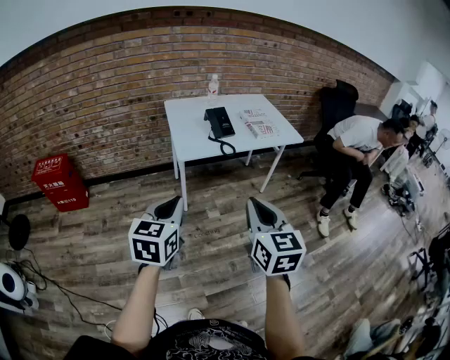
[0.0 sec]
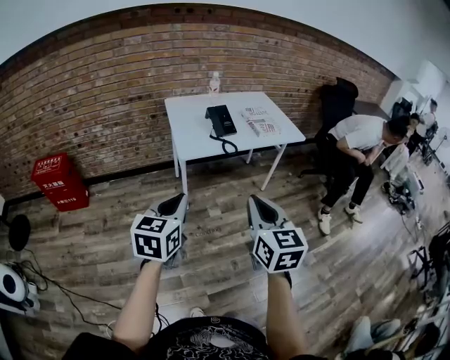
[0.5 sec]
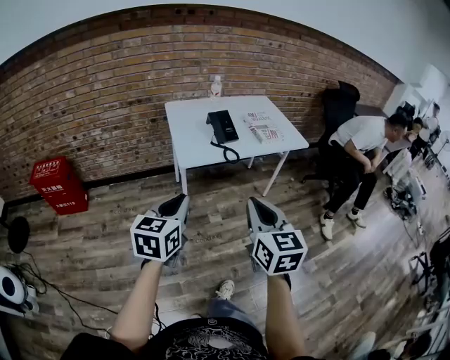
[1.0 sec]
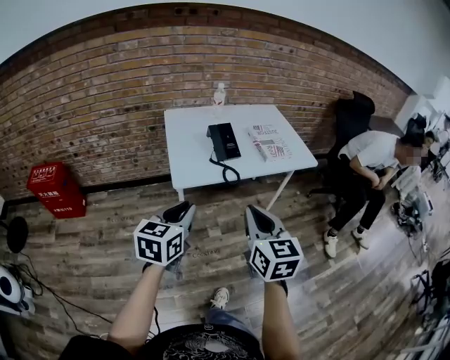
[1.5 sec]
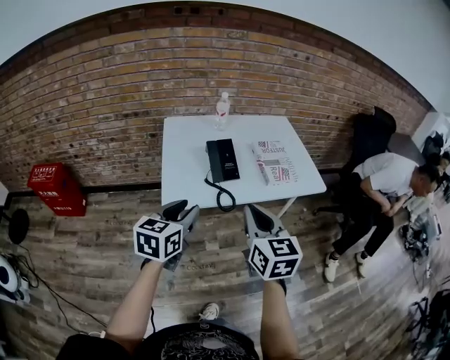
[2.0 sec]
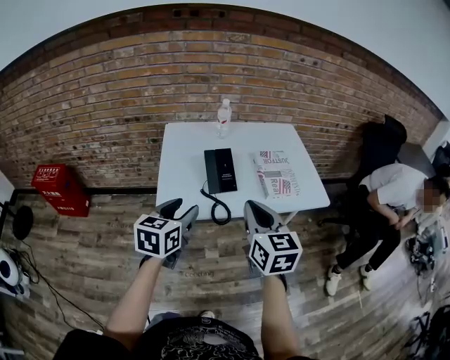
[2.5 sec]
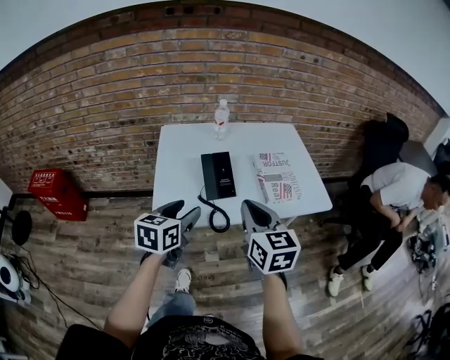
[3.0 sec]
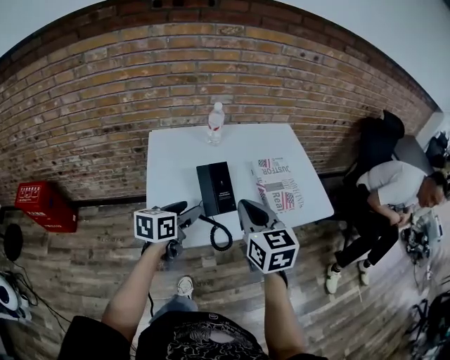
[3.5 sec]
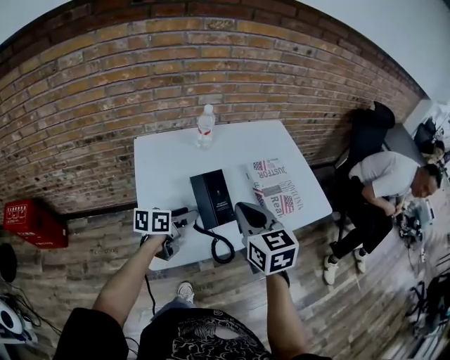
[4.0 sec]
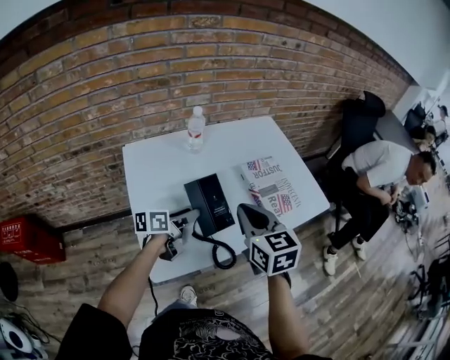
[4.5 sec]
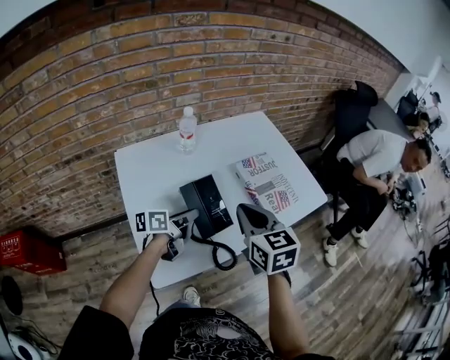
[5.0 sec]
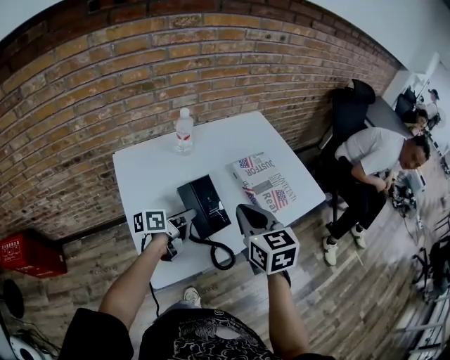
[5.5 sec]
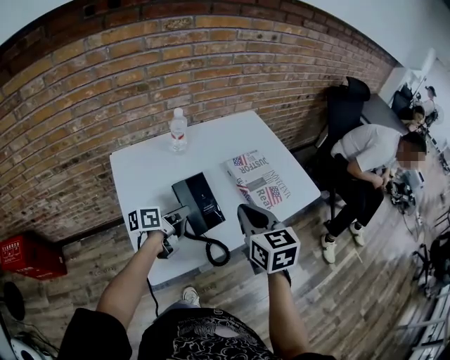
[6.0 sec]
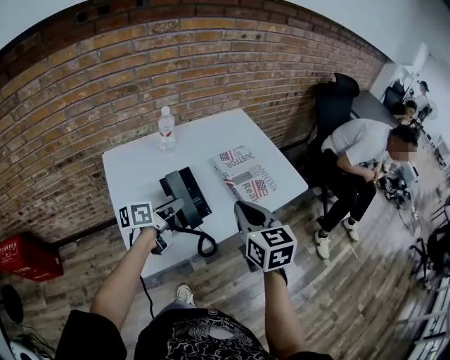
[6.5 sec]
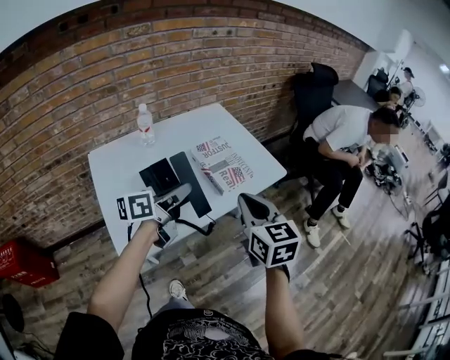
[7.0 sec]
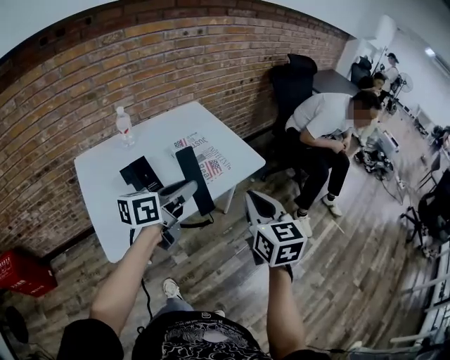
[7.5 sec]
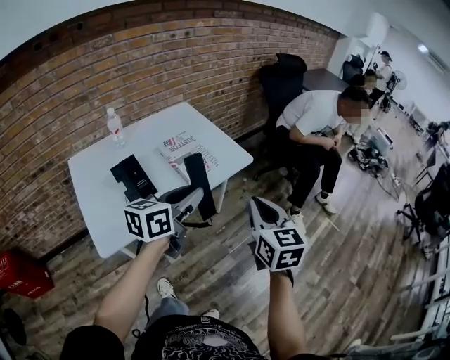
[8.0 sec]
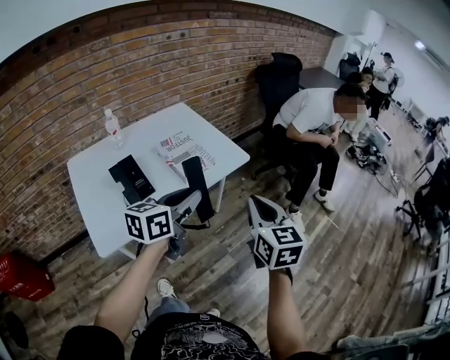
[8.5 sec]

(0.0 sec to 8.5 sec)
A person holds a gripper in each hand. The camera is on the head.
0.0 sec - 2.0 sec: Both grippers move forward, some 30 cm. The left gripper opens its fingers.
2.0 sec - 4.0 sec: The left gripper travels forward and downward by about 30 cm, swivels about 40 degrees, and opens its fingers, while the right gripper goes approximately 25 cm forward.
4.0 sec - 6.5 sec: The left gripper goes approximately 5 cm upward, and closes its fingers. Meanwhile the right gripper shifts roughly 10 cm to the right.
6.5 sec - 8.5 sec: The right gripper moves to the right, approximately 25 cm; the left gripper heads to the right and upward, covering about 30 cm, and rotates some 30 degrees.

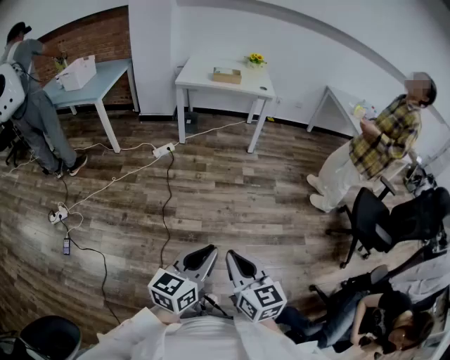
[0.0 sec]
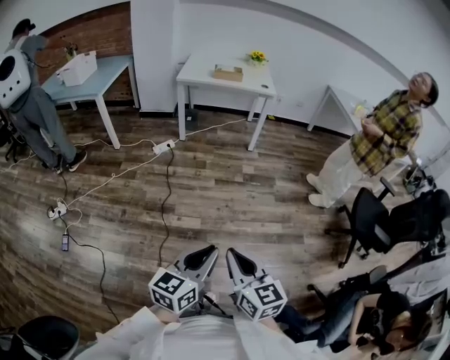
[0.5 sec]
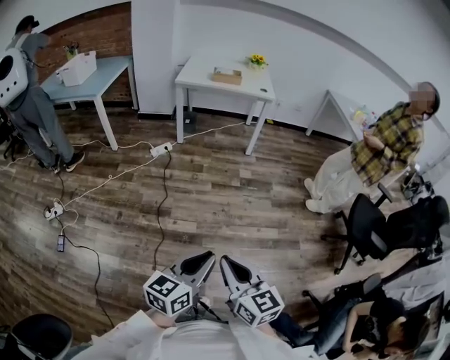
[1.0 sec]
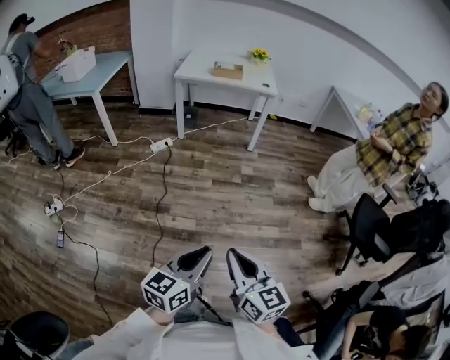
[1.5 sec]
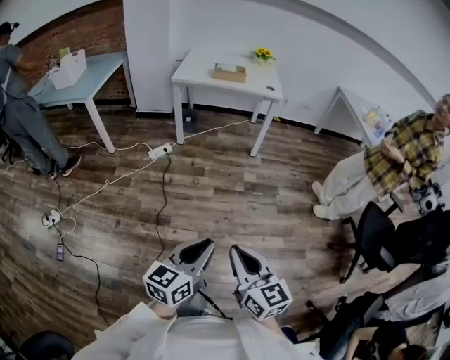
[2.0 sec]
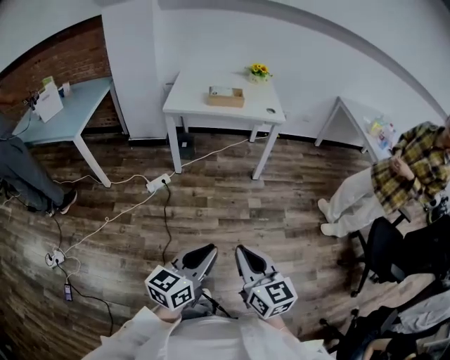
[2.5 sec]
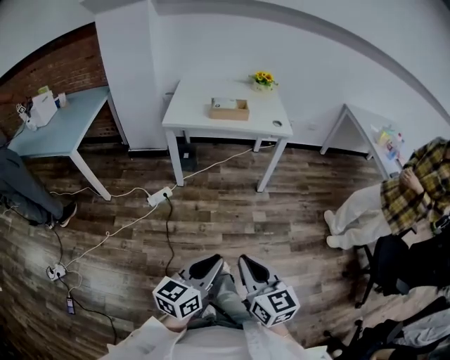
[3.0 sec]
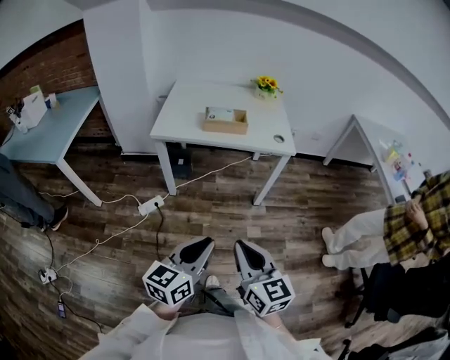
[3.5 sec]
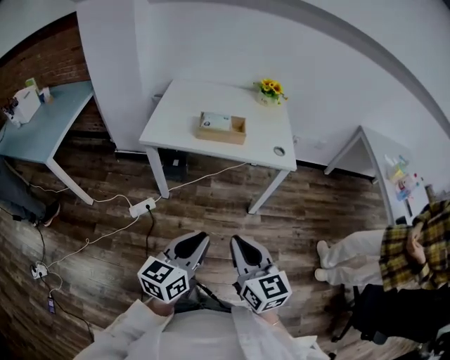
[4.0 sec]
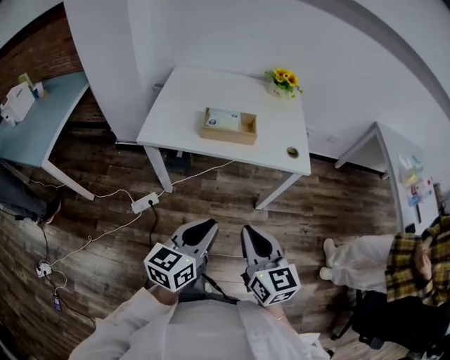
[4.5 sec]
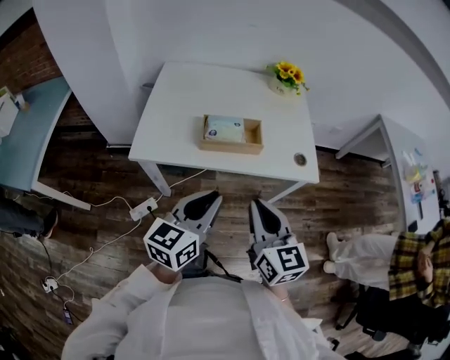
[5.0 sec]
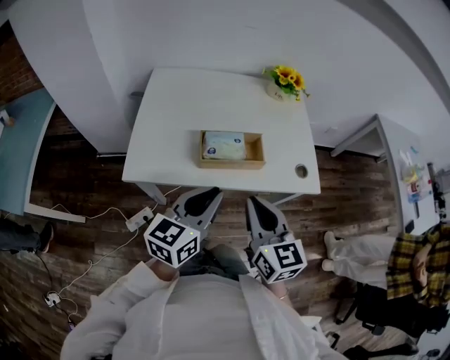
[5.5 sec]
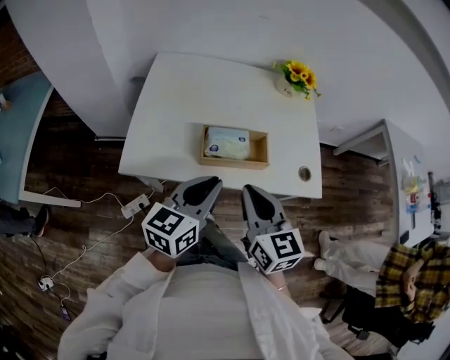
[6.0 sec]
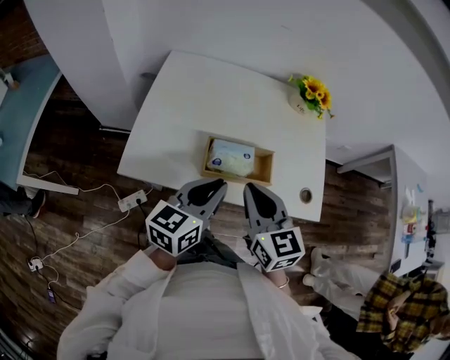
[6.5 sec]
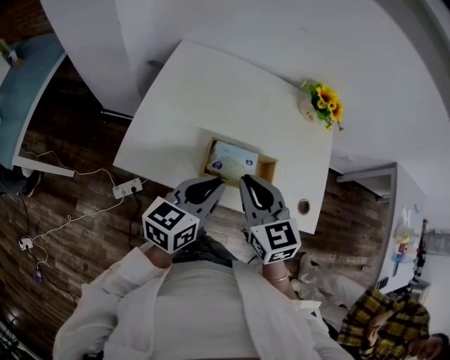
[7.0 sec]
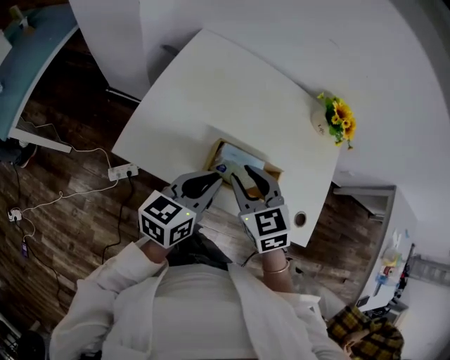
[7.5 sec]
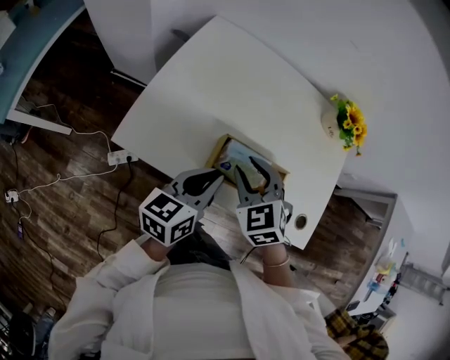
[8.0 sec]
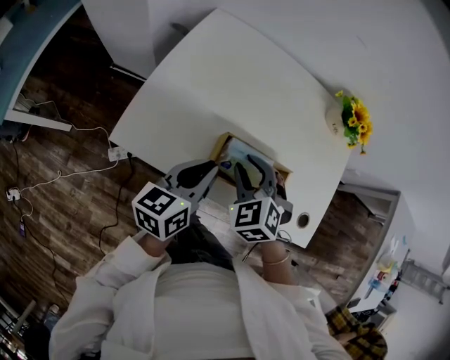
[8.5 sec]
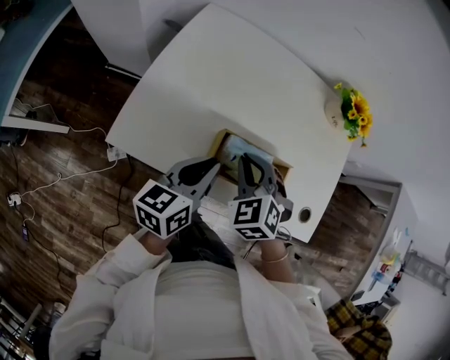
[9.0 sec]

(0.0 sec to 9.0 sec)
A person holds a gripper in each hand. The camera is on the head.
0.0 sec - 2.0 sec: Both grippers travel together forward, about 15 cm.
2.0 sec - 4.5 sec: Both grippers are carried forward, roughly 60 cm.
4.5 sec - 7.0 sec: Both grippers travel together forward, roughly 35 cm. The right gripper turns by roughly 20 degrees.
7.0 sec - 9.0 sec: The left gripper travels downward by about 5 cm, while the right gripper goes some 10 cm downward and forward, turns by approximately 40 degrees, and opens and closes again.

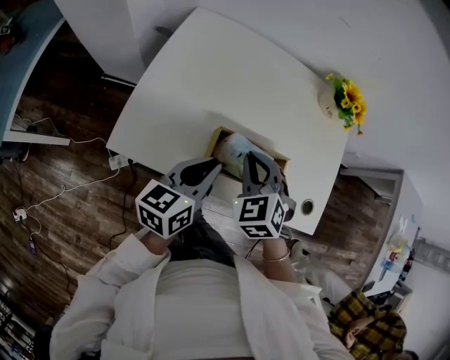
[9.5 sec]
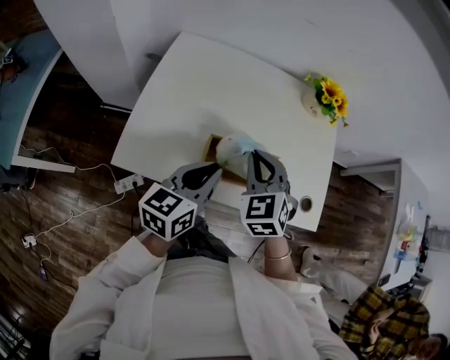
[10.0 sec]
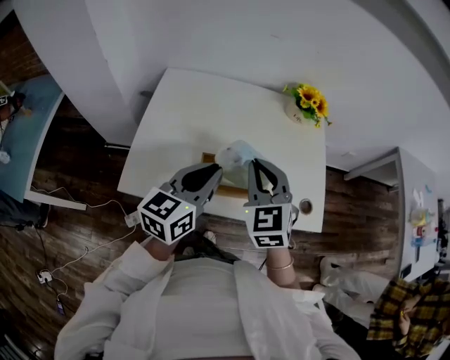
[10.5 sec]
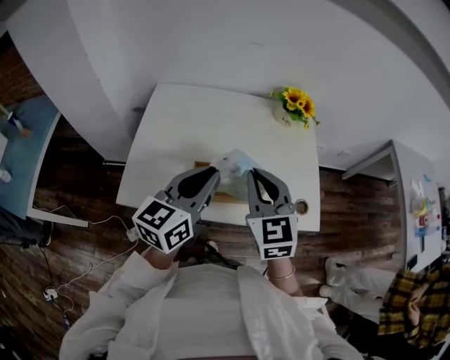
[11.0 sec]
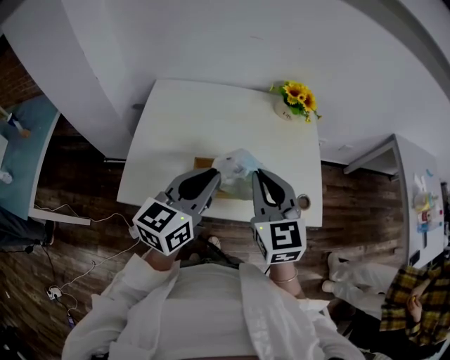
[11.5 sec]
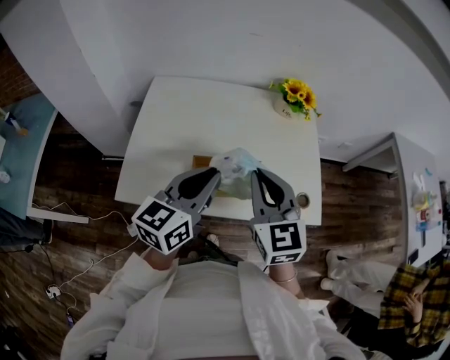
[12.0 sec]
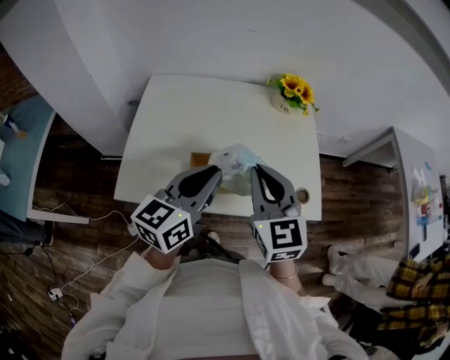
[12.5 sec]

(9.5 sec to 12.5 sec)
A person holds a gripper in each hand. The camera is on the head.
9.5 sec - 11.0 sec: The right gripper goes approximately 15 cm upward and to the right, and rotates roughly 40 degrees, while the left gripper heads upward, covering approximately 15 cm, and swivels about 20 degrees.
11.0 sec - 12.5 sec: The grippers make only small movements.

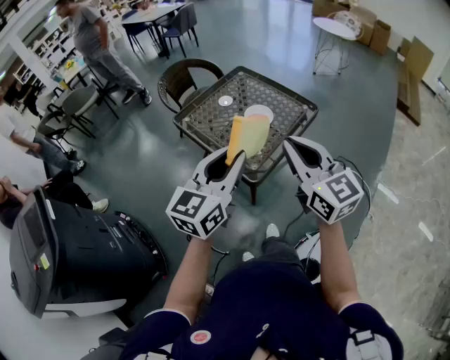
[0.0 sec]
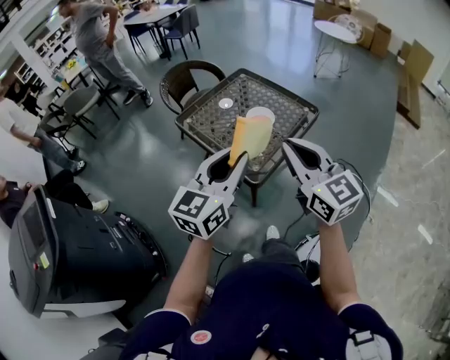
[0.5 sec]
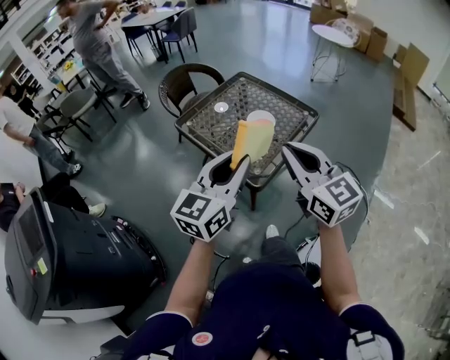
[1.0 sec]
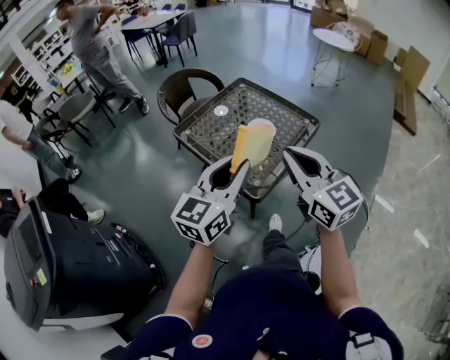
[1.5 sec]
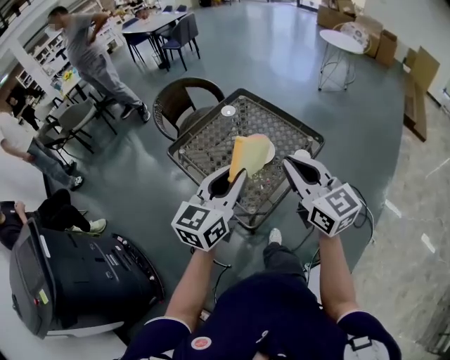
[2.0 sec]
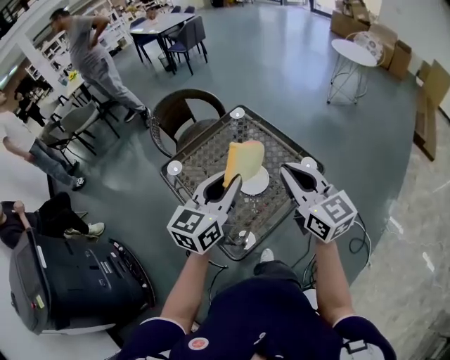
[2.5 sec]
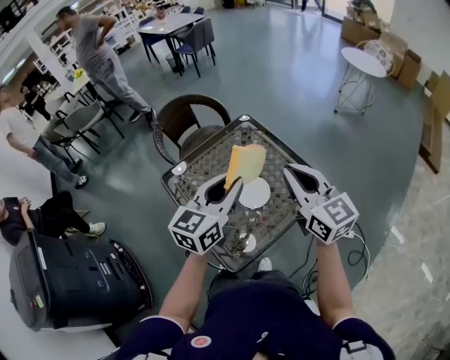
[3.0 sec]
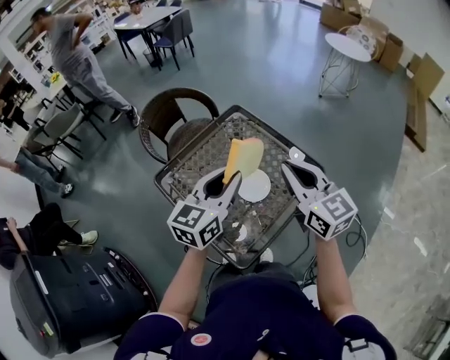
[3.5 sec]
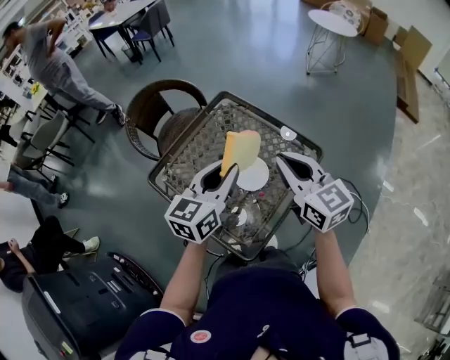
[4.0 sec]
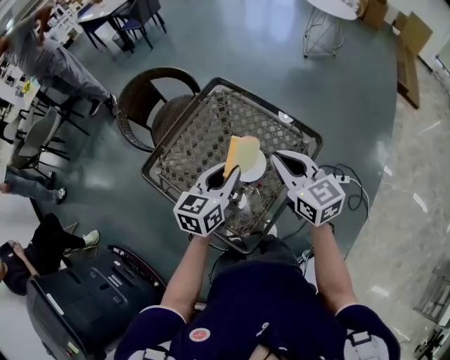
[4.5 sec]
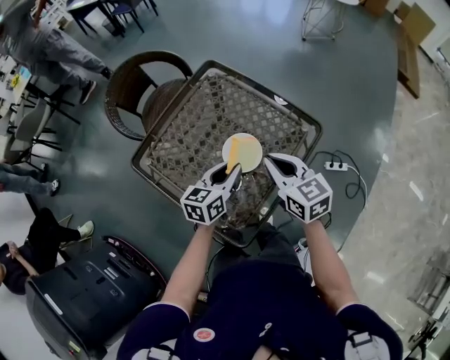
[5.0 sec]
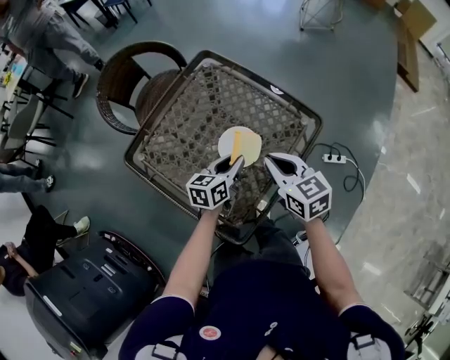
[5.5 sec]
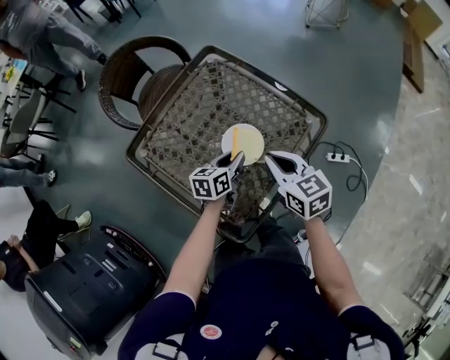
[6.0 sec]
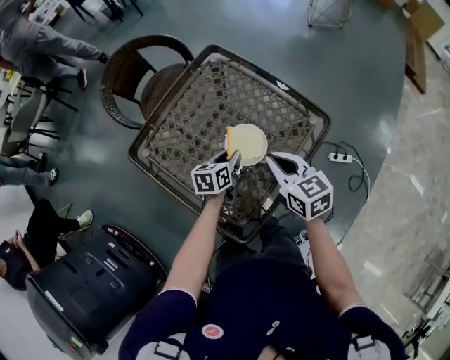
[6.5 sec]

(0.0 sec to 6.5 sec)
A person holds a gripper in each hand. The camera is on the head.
0.0 sec - 2.0 sec: The grippers both shift forward by roughly 15 cm.
2.0 sec - 4.5 sec: Both grippers move forward and downward, roughly 25 cm.
4.5 sec - 6.5 sec: The right gripper heads downward, covering about 15 cm. Meanwhile the left gripper travels downward by roughly 25 cm, and rotates some 30 degrees.
